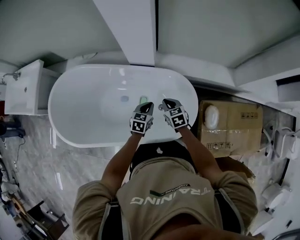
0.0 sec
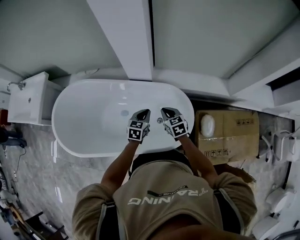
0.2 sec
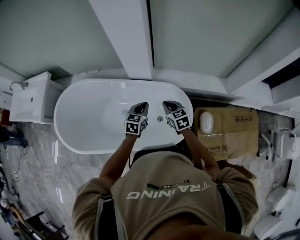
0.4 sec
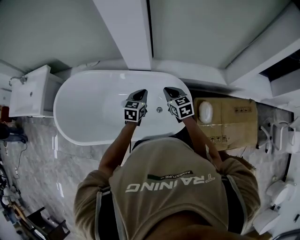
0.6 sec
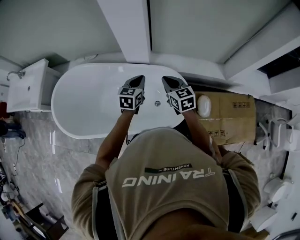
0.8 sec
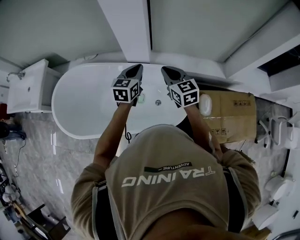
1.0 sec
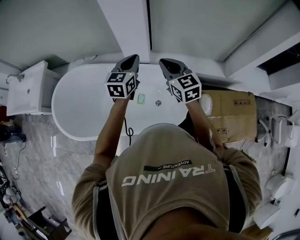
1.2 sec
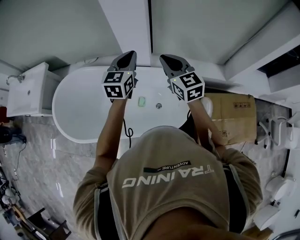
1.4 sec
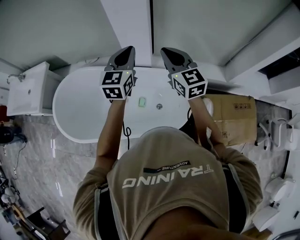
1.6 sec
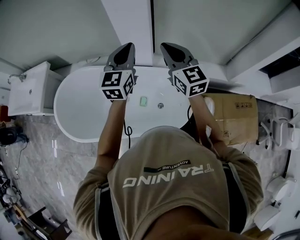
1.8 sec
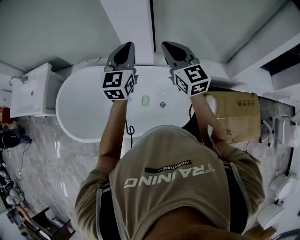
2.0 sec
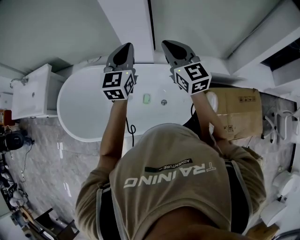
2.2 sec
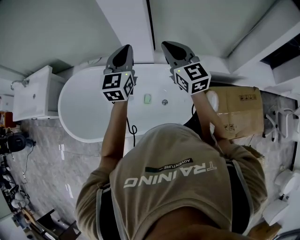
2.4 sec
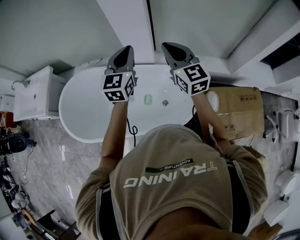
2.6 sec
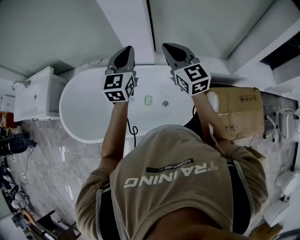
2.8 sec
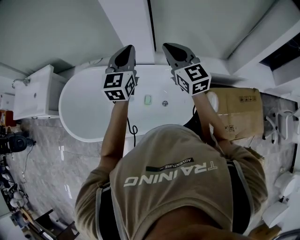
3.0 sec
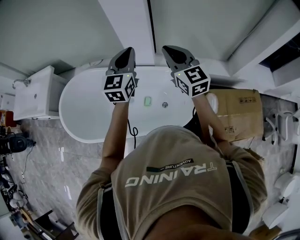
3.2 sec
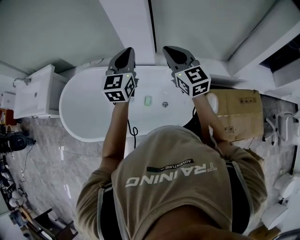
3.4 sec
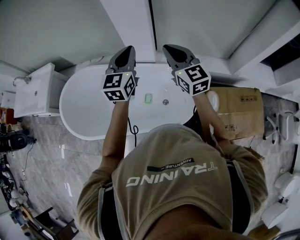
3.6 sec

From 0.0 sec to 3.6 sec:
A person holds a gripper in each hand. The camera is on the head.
From 0.0 sec to 1.8 sec: Both grippers move upward, some 40 cm. The right gripper angles its fingers upward, by about 40 degrees; the left gripper angles its fingers upward, by some 40 degrees.
From 1.8 sec to 3.6 sec: The grippers make only small movements.

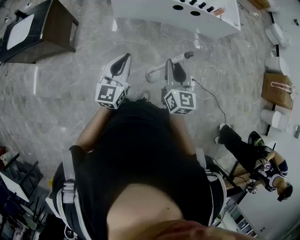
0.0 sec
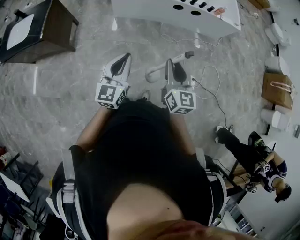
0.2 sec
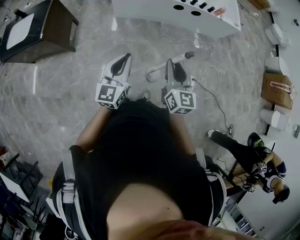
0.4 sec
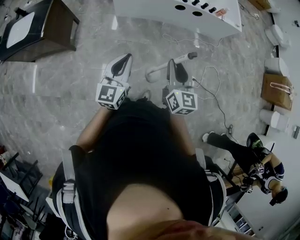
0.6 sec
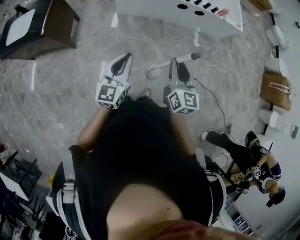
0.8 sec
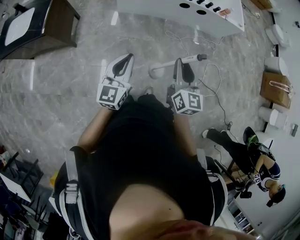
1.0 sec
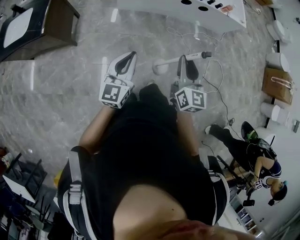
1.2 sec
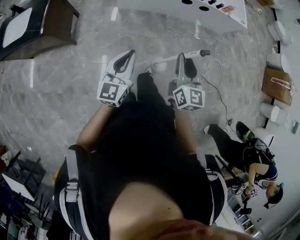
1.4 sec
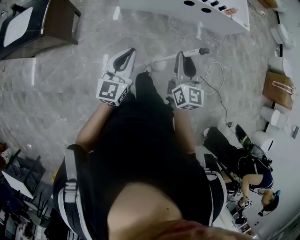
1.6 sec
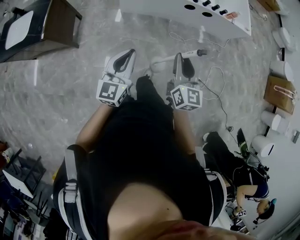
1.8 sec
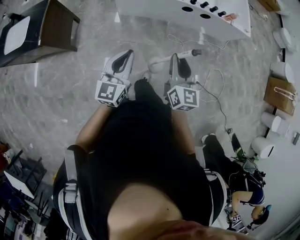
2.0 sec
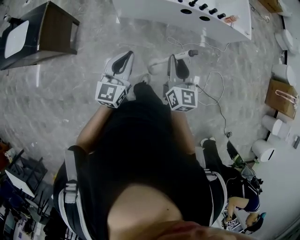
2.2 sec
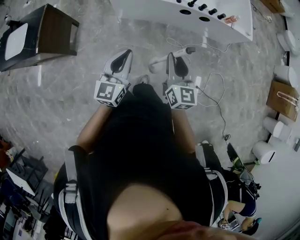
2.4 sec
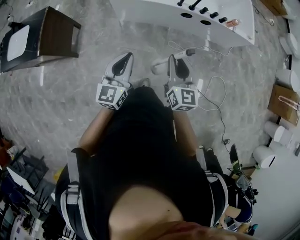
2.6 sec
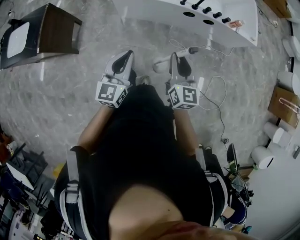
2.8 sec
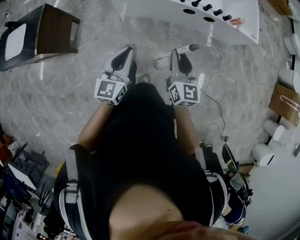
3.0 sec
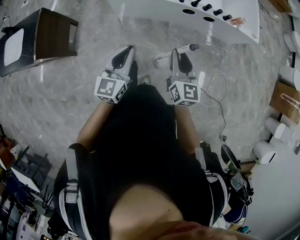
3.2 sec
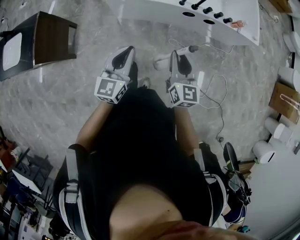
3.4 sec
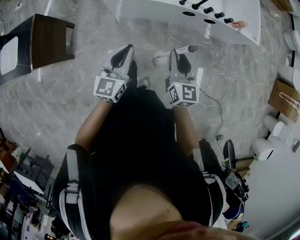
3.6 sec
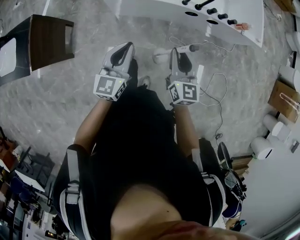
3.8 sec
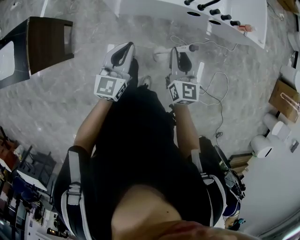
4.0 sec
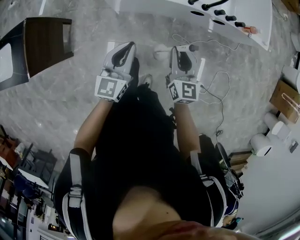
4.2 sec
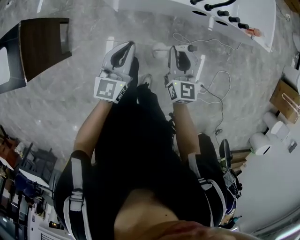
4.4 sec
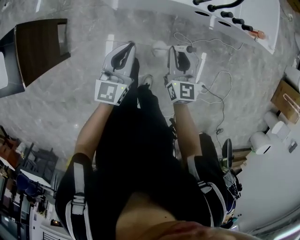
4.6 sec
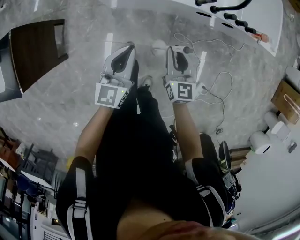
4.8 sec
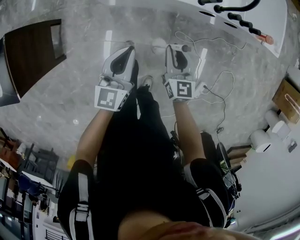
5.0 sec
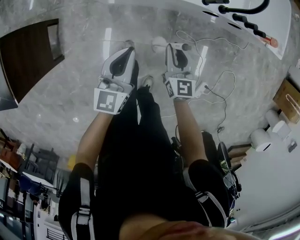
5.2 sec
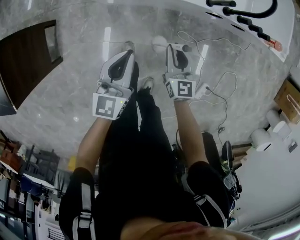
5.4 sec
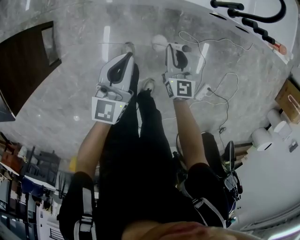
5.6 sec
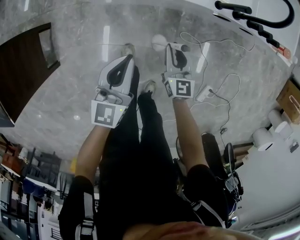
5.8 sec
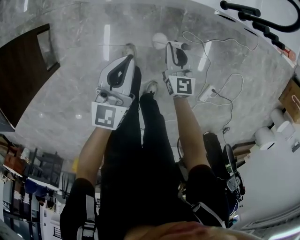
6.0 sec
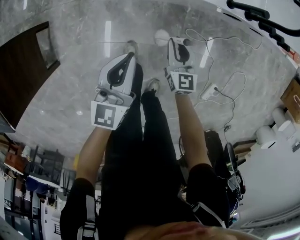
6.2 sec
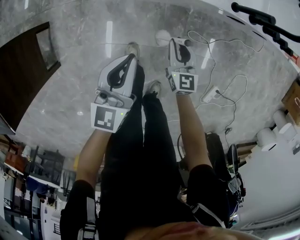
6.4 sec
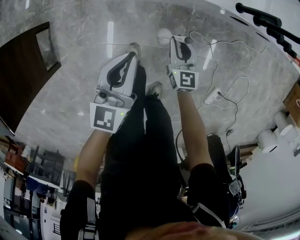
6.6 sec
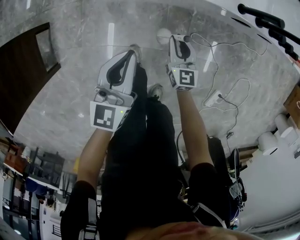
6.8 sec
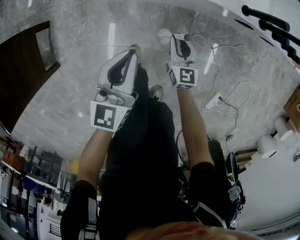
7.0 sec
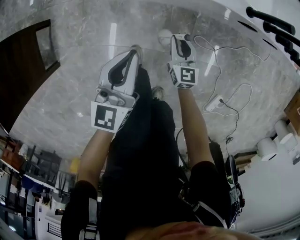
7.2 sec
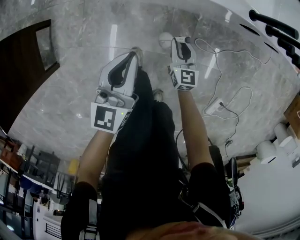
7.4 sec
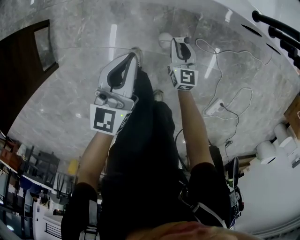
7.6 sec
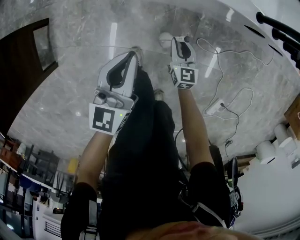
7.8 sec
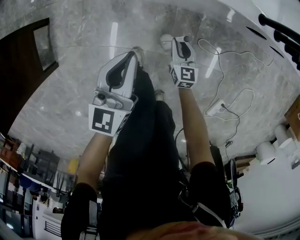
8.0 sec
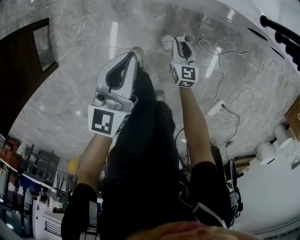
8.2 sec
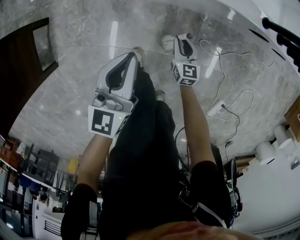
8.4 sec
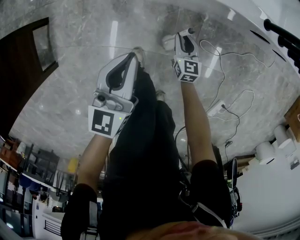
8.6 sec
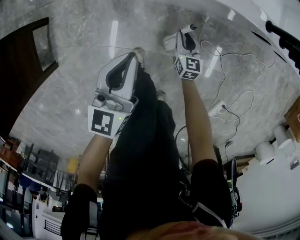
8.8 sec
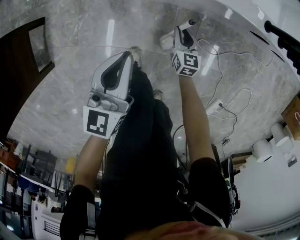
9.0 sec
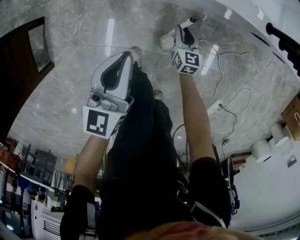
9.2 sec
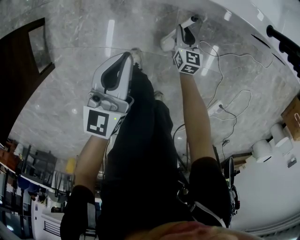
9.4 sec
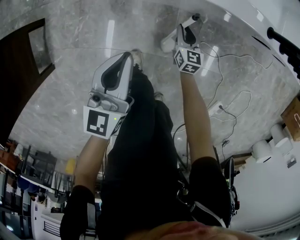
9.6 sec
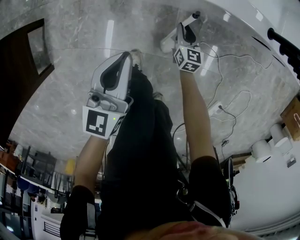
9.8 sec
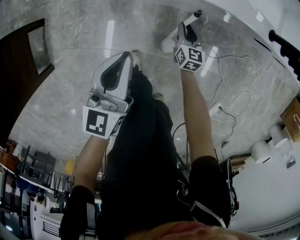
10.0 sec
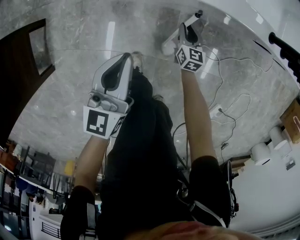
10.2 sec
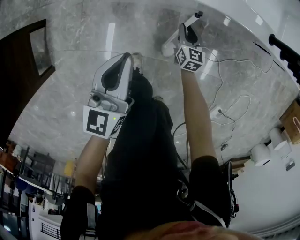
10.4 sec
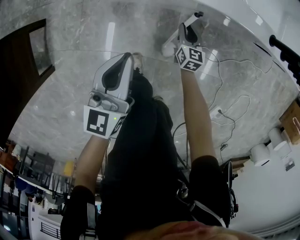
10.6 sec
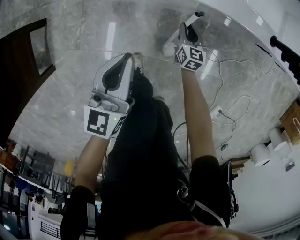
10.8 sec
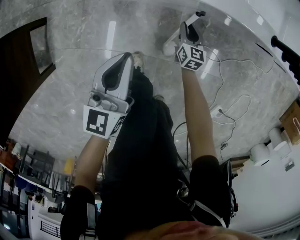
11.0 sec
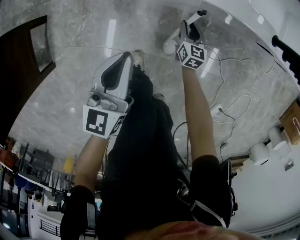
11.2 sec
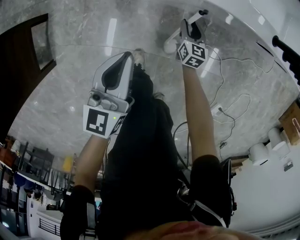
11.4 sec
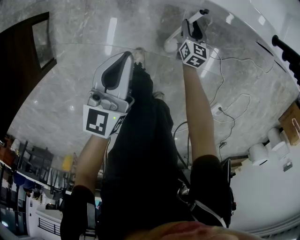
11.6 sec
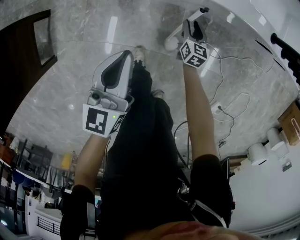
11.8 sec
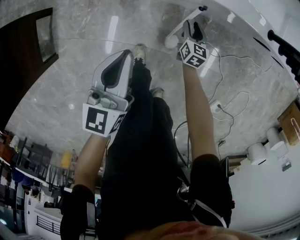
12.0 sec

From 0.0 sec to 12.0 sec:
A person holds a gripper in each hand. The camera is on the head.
From 0.0 sec to 1.6 sec: The left gripper goes about 5 cm to the left. The right gripper travels forward and to the left by approximately 10 cm.
From 1.6 sec to 3.0 sec: The two grippers go roughly 20 cm forward.
From 3.0 sec to 4.4 sec: Both grippers move forward and downward, about 25 cm.
From 4.4 sec to 6.0 sec: Both grippers travel together downward, some 30 cm.
From 6.0 sec to 7.6 sec: The right gripper is displaced downward by approximately 15 cm. The left gripper is displaced downward by approximately 10 cm.
From 7.6 sec to 9.0 sec: The right gripper is displaced downward and forward by roughly 10 cm.
From 9.0 sec to 10.4 sec: The right gripper heads forward, covering approximately 5 cm.
From 10.4 sec to 12.0 sec: The left gripper ends up approximately 5 cm from where it was.

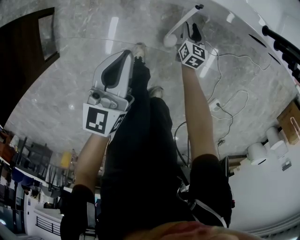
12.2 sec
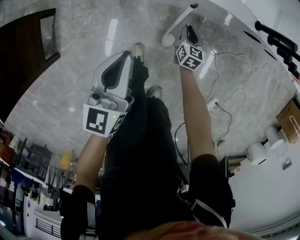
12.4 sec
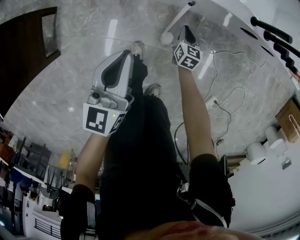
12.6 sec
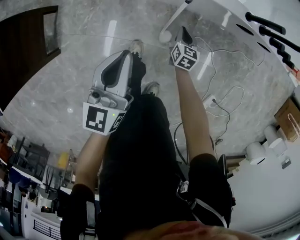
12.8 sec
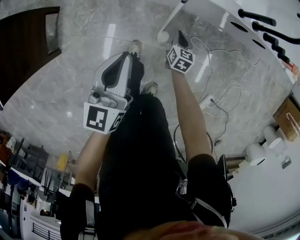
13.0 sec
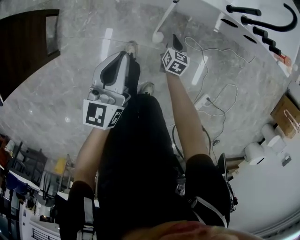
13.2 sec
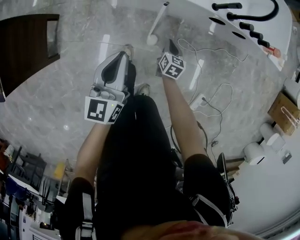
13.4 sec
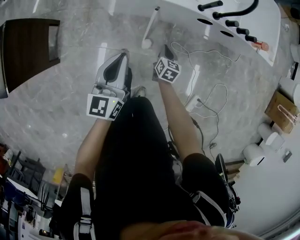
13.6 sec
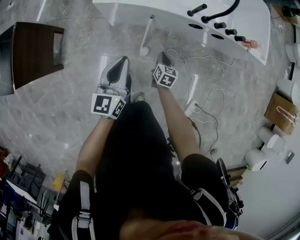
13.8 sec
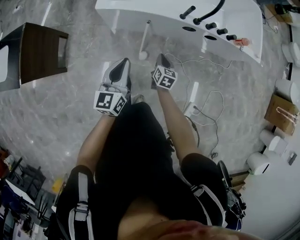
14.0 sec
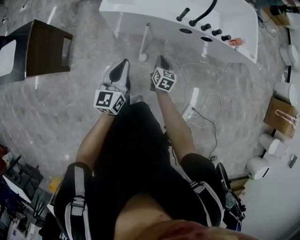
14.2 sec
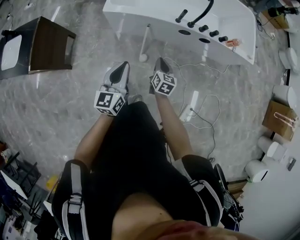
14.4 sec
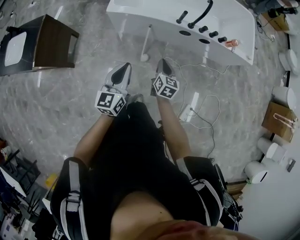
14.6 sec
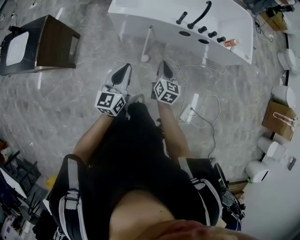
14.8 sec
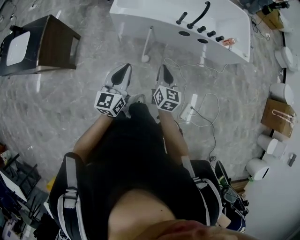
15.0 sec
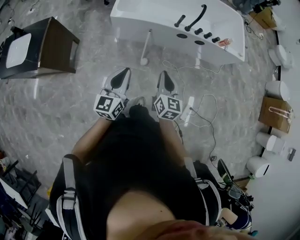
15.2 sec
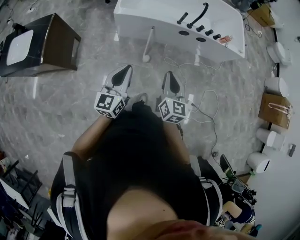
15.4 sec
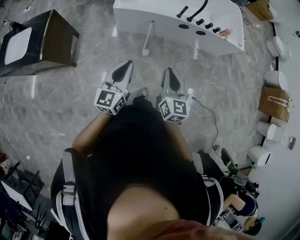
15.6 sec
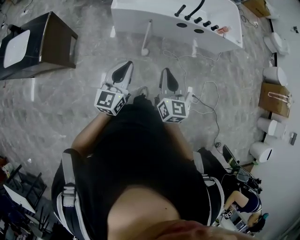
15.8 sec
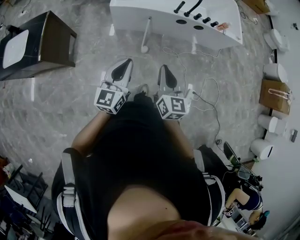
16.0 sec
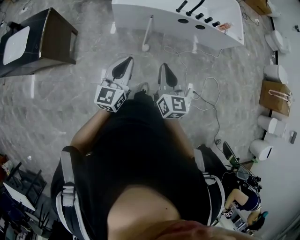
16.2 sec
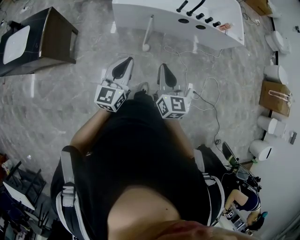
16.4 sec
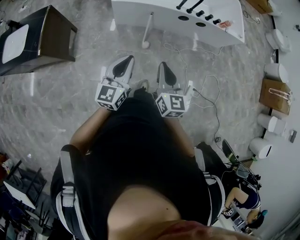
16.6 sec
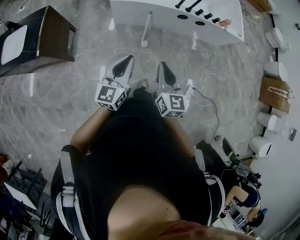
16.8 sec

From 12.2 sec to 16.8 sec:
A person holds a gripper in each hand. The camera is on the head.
From 12.2 sec to 13.8 sec: The right gripper goes approximately 35 cm upward and backward, and closes up, while the left gripper goes approximately 30 cm upward, backward and to the right.
From 13.8 sec to 15.2 sec: The right gripper shifts about 50 cm upward and backward, and swivels roughly 20 degrees, while the left gripper goes some 30 cm backward and upward.
From 15.2 sec to 16.8 sec: The left gripper shifts roughly 5 cm backward. Meanwhile the right gripper goes some 15 cm backward, to the left and upward.

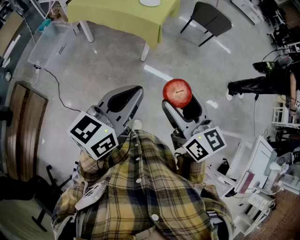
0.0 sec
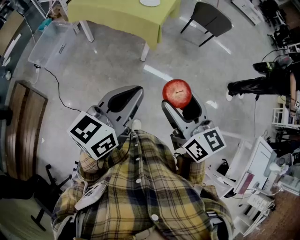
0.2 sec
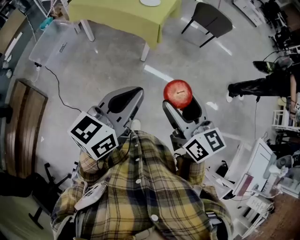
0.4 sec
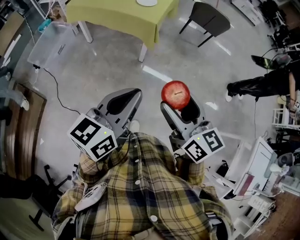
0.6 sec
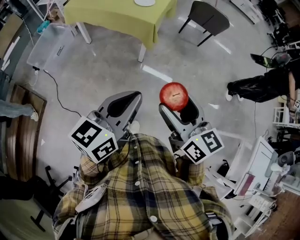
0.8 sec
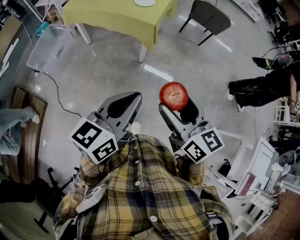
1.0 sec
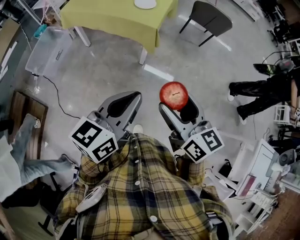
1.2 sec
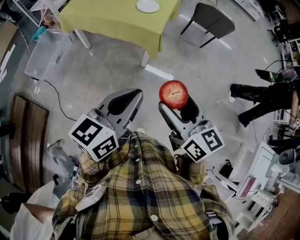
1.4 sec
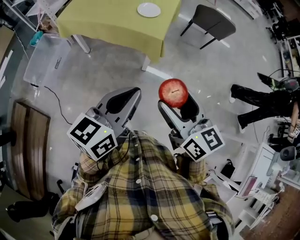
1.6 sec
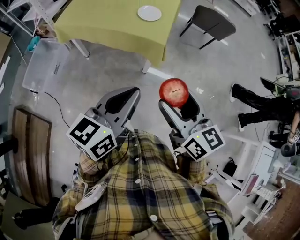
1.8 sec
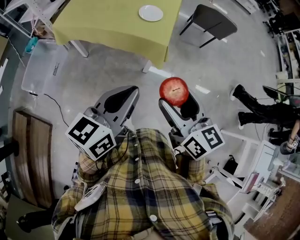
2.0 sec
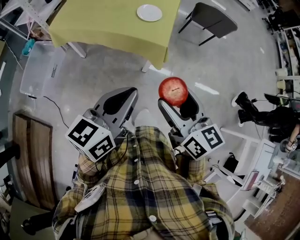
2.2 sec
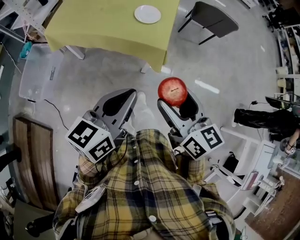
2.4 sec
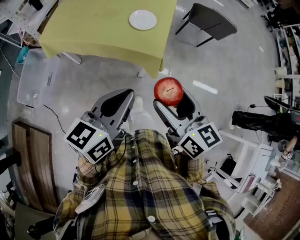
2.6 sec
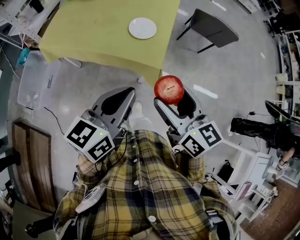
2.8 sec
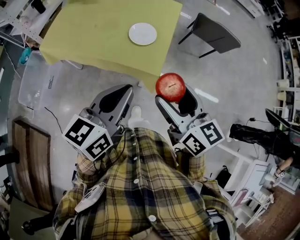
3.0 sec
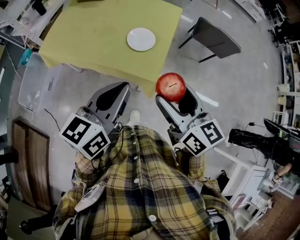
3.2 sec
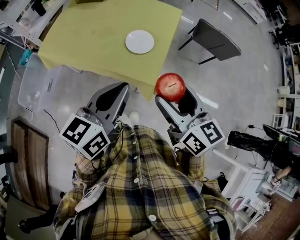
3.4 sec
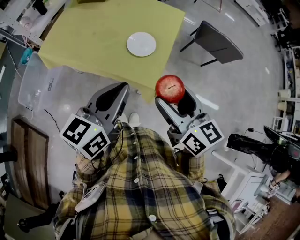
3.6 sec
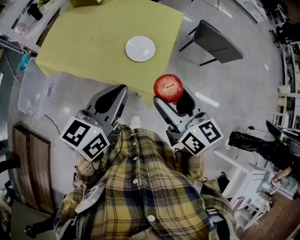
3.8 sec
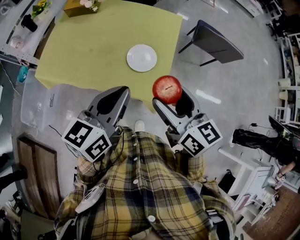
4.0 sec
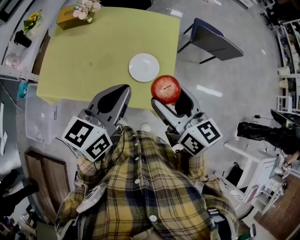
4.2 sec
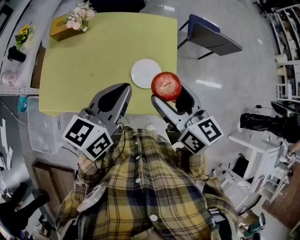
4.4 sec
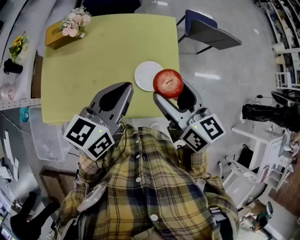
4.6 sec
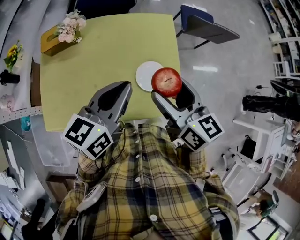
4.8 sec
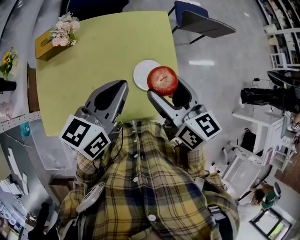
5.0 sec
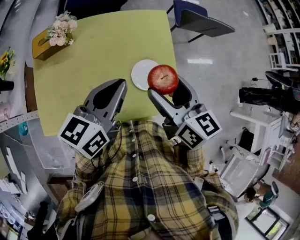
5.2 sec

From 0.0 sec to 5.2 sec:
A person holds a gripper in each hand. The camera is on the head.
From 0.0 sec to 1.8 sec: Both grippers travel together forward and to the left, about 20 cm.
From 1.8 sec to 3.4 sec: Both grippers move forward, roughly 30 cm.
From 3.4 sec to 5.2 sec: The right gripper moves approximately 30 cm, and changes its angle by approximately 30 degrees. The left gripper changes place by some 30 cm, and swivels roughly 30 degrees.
